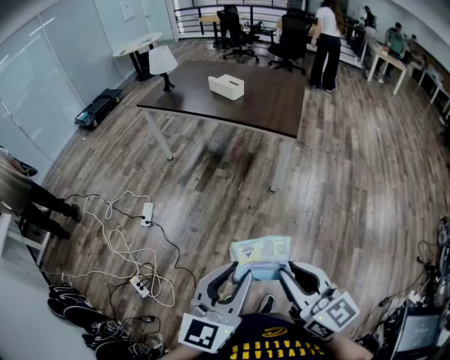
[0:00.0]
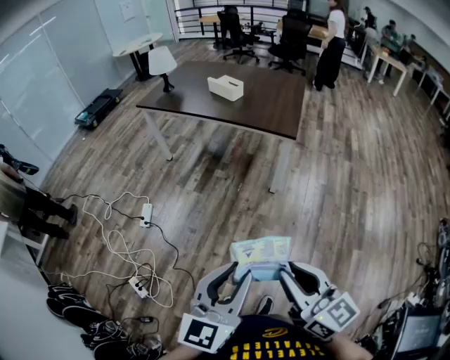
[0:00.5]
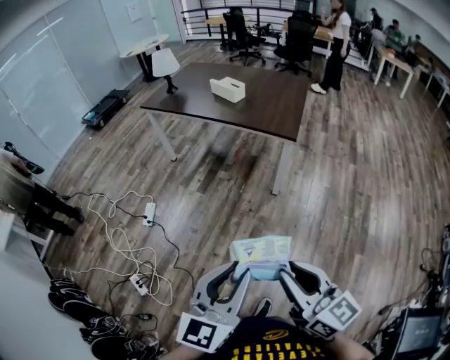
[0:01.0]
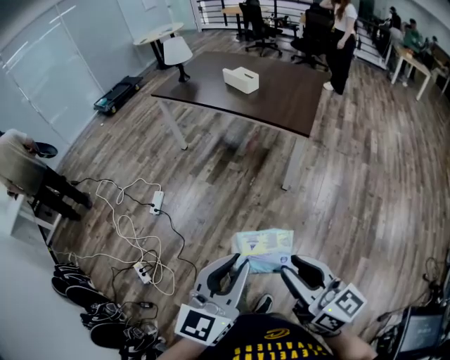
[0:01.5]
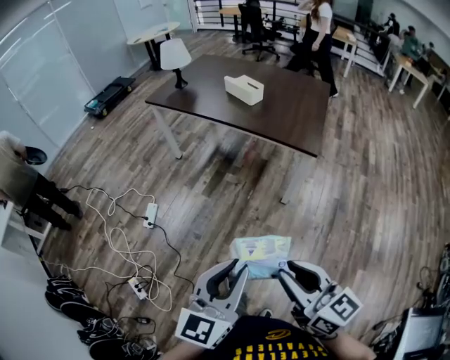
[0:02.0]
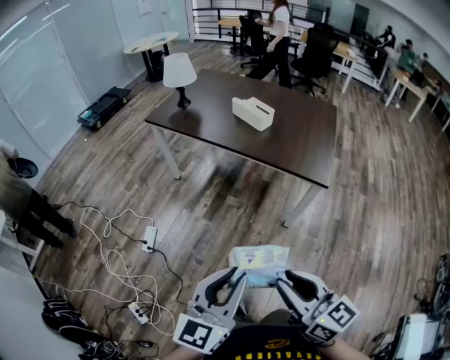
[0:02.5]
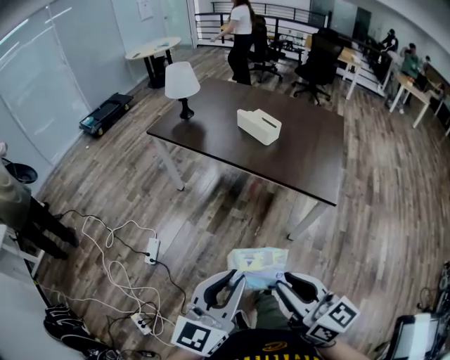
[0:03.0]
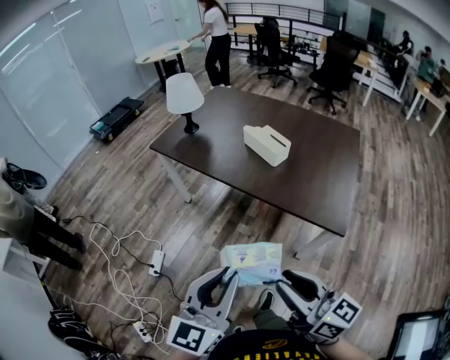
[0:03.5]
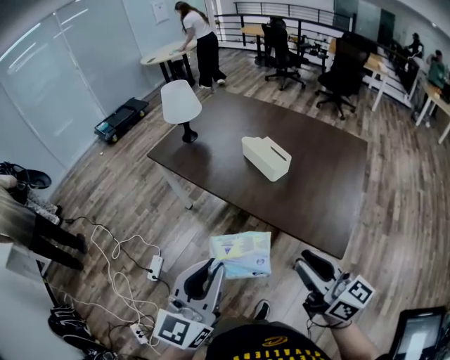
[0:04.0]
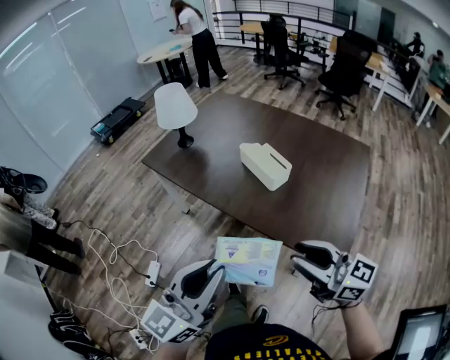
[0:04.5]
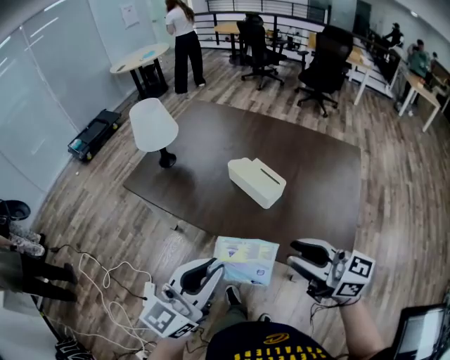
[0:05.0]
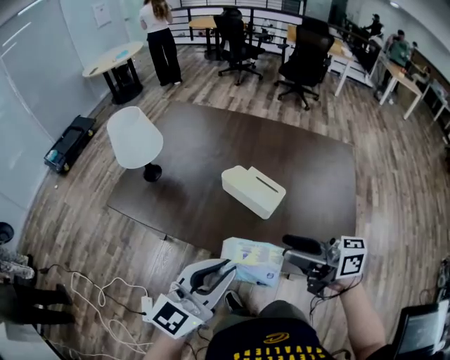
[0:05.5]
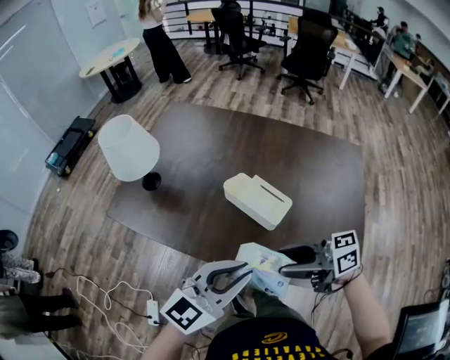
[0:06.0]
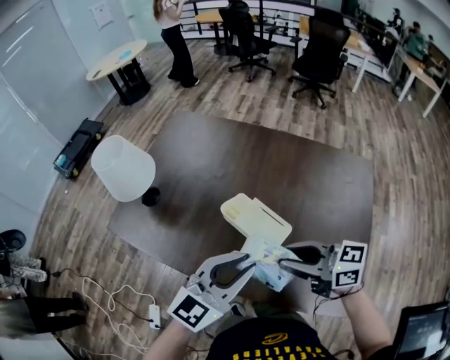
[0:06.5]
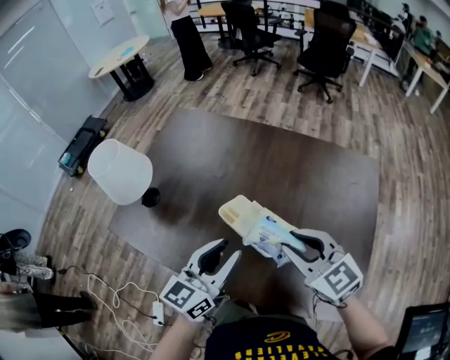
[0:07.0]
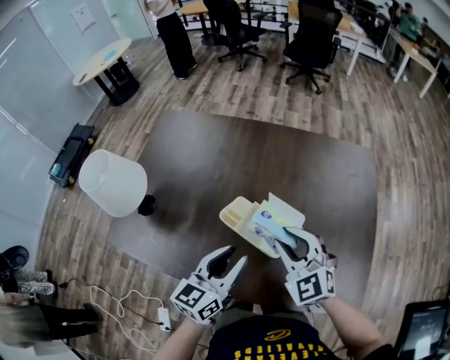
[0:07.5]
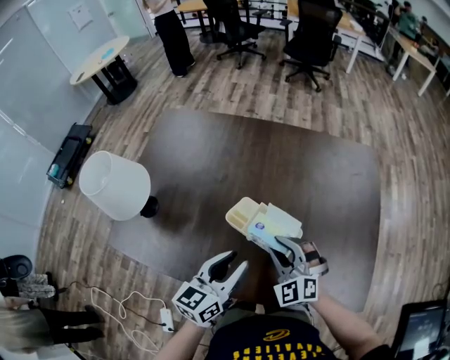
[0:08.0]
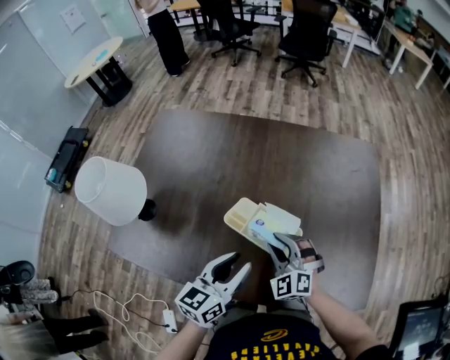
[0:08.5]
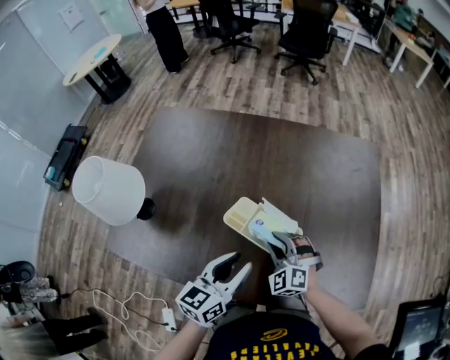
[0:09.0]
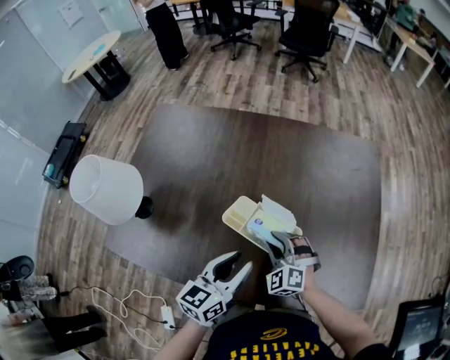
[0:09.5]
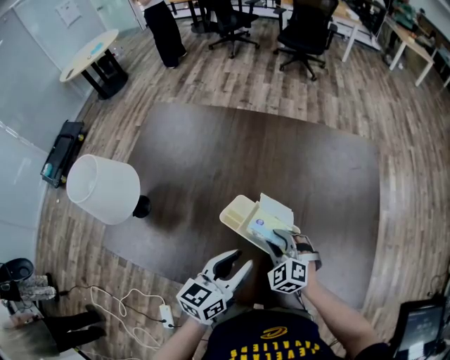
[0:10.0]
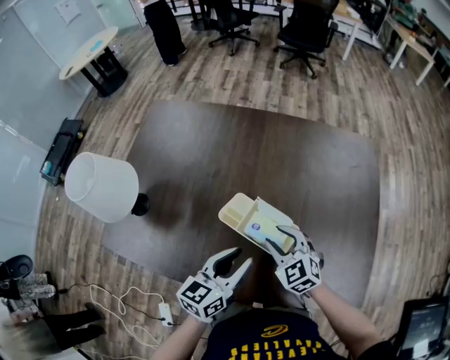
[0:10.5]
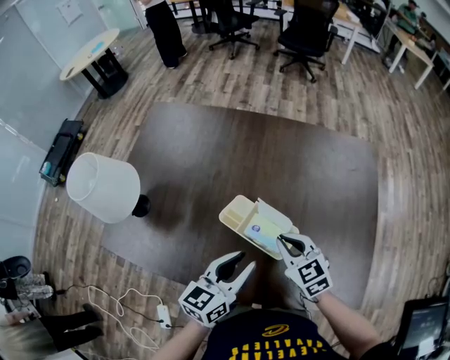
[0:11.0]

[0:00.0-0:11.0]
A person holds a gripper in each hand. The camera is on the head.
0:00.0 to 0:02.0: The grippers both shift forward by roughly 15 cm.
0:02.0 to 0:03.5: The two grippers go roughly 35 cm forward.
0:03.5 to 0:05.5: Both grippers move forward, about 35 cm. The right gripper changes its angle by about 20 degrees, and opens up. The left gripper swivels some 30 degrees.
0:05.5 to 0:07.5: The left gripper ends up approximately 25 cm from where it was, and changes its angle by approximately 30 degrees. Meanwhile the right gripper moves some 25 cm, rolls counterclockwise, seen from behind, by roughly 60 degrees, and closes.
0:07.5 to 0:09.0: The right gripper goes some 15 cm downward, and changes its angle by approximately 20 degrees.
0:09.0 to 0:11.0: The right gripper shifts approximately 5 cm upward, and swivels approximately 40 degrees.

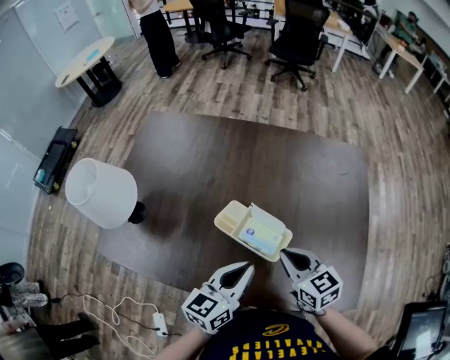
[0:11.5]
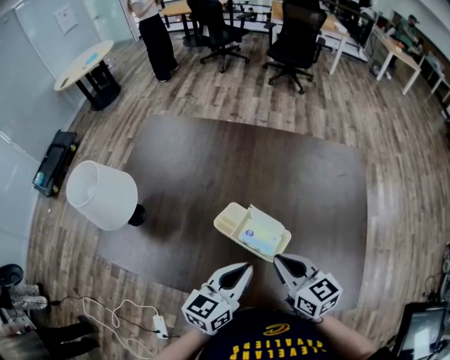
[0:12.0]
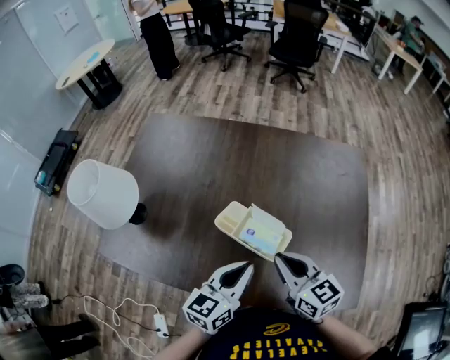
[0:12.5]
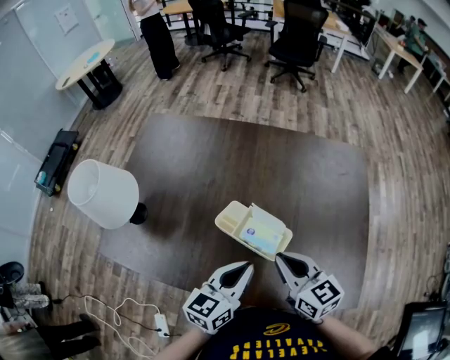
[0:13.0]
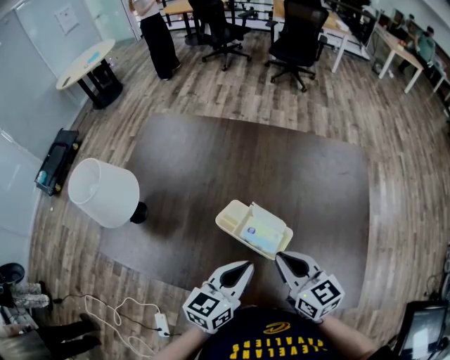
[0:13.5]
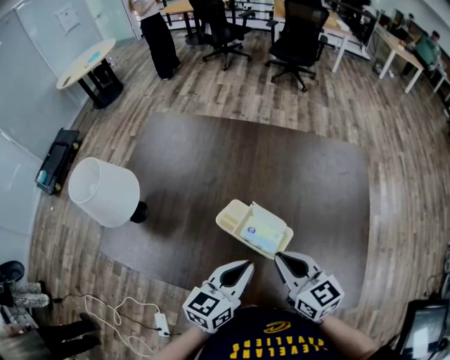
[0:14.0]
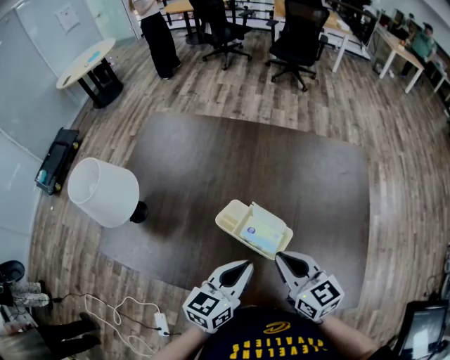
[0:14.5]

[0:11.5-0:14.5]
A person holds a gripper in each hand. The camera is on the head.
0:11.5 to 0:13.0: The grippers stay close to where they were, moving slightly.
0:13.0 to 0:14.5: Neither gripper changes place.

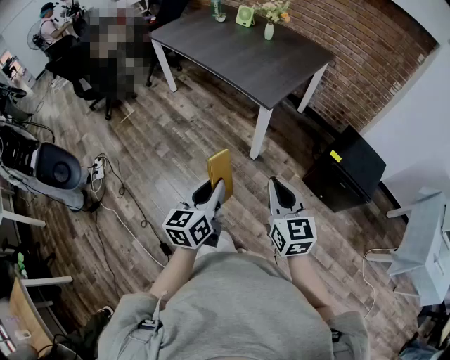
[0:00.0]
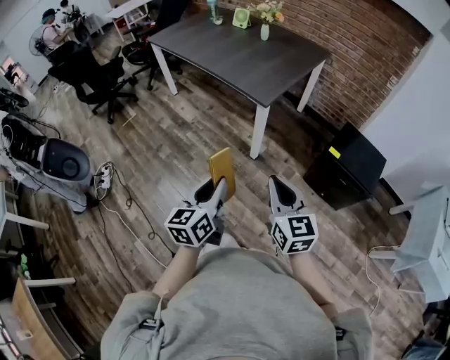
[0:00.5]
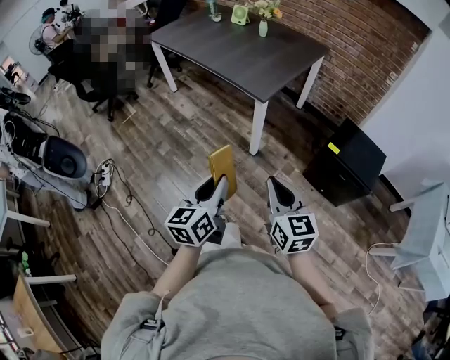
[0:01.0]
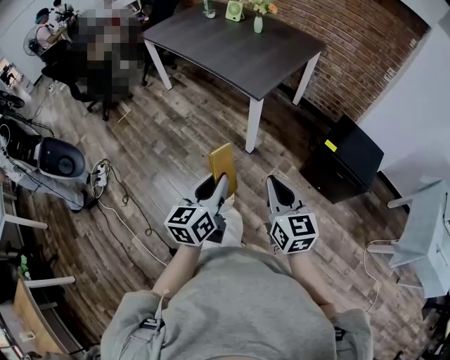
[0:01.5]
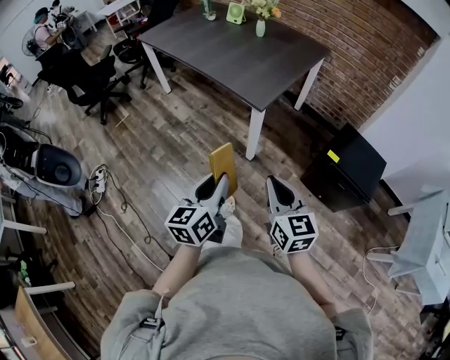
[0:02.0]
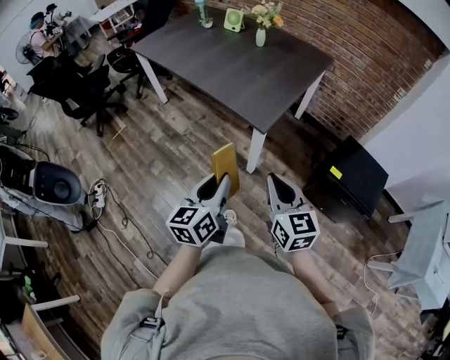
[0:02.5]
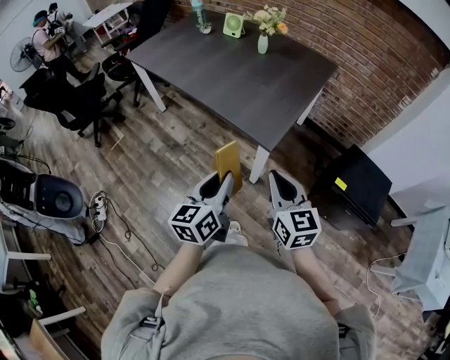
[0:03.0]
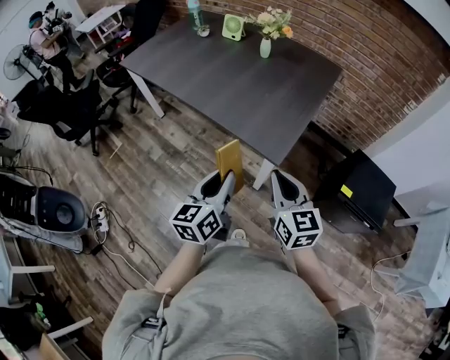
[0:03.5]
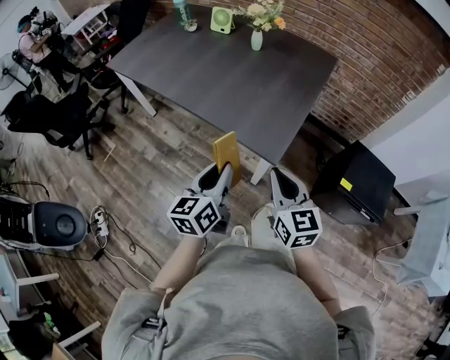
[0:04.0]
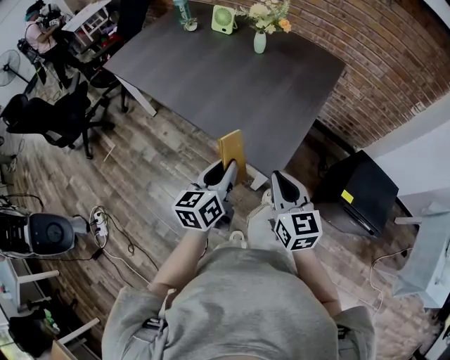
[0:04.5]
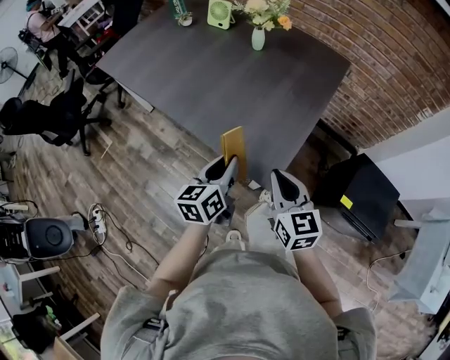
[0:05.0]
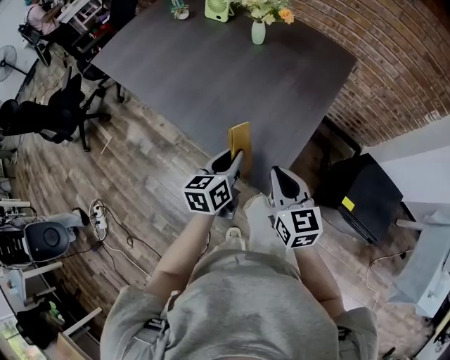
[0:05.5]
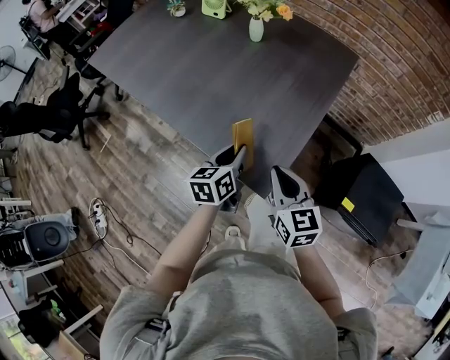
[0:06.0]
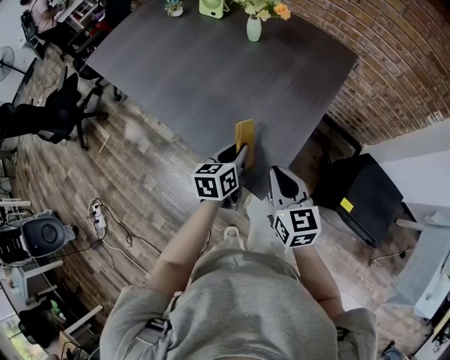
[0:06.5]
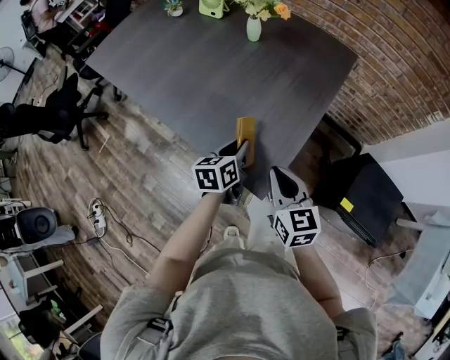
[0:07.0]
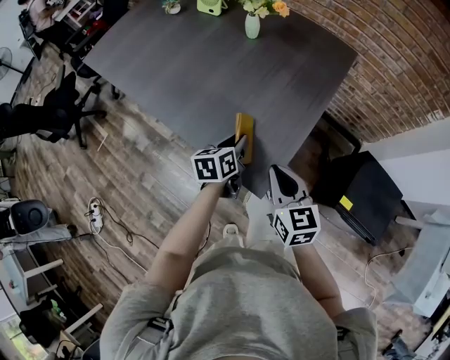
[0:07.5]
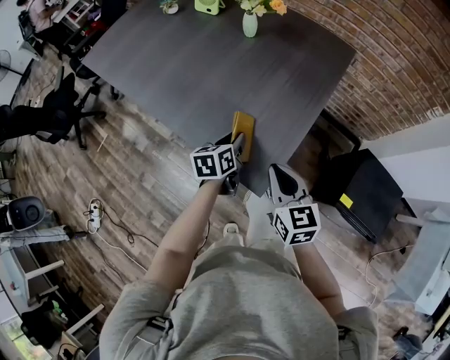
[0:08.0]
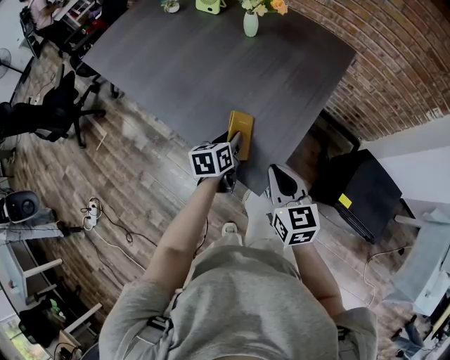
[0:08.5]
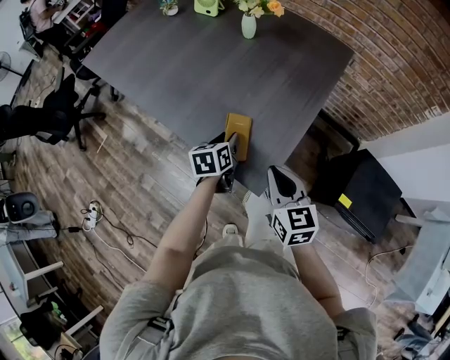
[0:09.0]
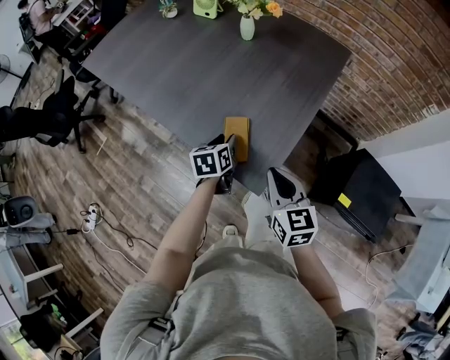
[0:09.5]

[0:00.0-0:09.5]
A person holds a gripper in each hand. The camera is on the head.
0:00.0 to 0:02.0: The left gripper moves to the right and forward, approximately 10 cm. Meanwhile the right gripper shifts by about 5 cm.
0:02.0 to 0:04.0: Both grippers move forward, roughly 30 cm.
0:04.0 to 0:05.5: The left gripper goes some 20 cm forward and downward, while the right gripper moves forward, about 15 cm.
0:05.5 to 0:07.5: The left gripper travels downward and forward by approximately 10 cm.
0:07.5 to 0:09.5: The grippers make only small movements.

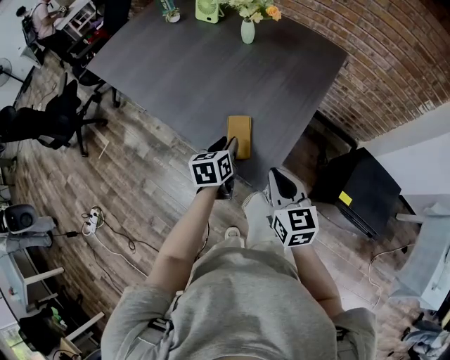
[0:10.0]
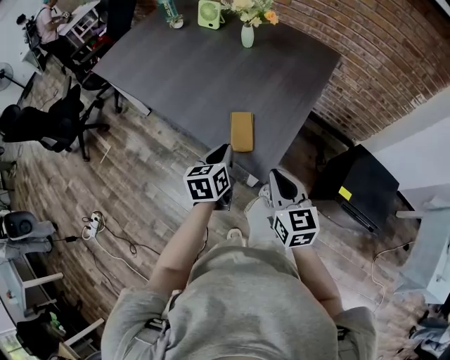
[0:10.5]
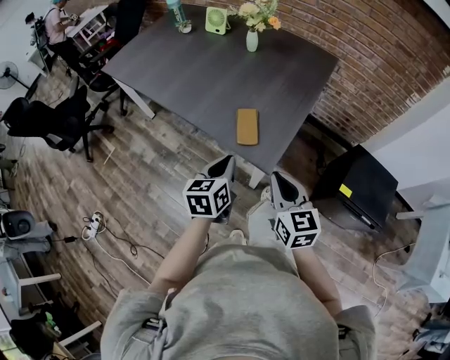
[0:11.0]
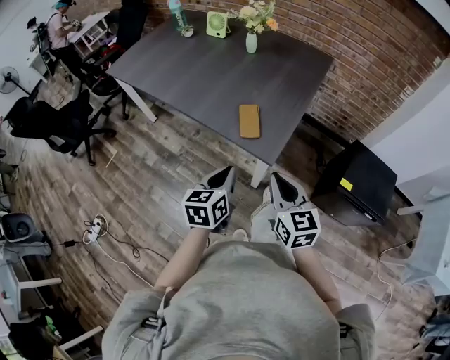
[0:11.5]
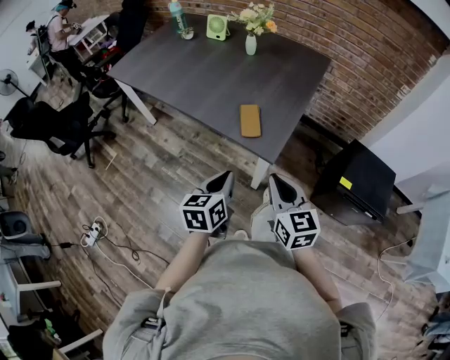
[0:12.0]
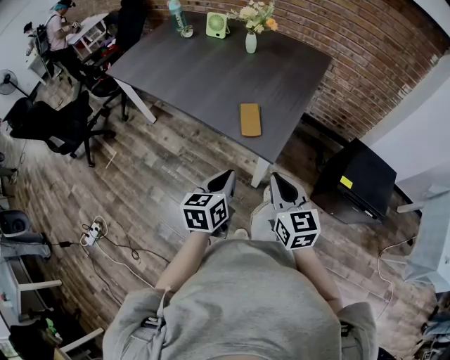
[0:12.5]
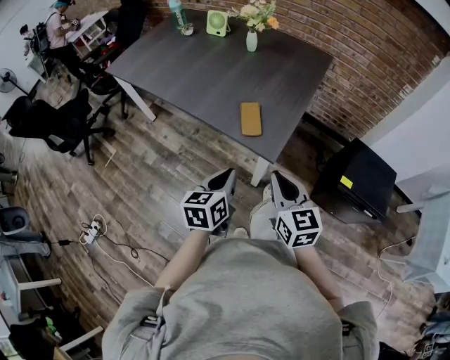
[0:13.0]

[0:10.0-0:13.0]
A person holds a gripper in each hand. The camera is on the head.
0:10.0 to 0:11.5: The right gripper moves backward, about 15 cm; the left gripper is displaced backward and upward by roughly 25 cm, and closes up.
0:11.5 to 0:13.0: The grippers move only a little.
